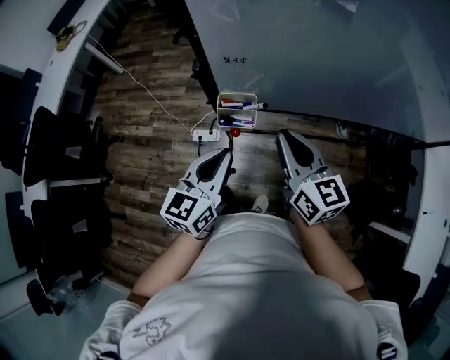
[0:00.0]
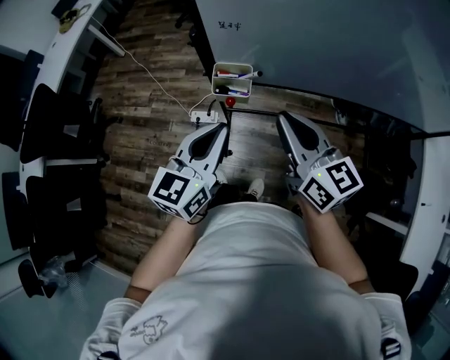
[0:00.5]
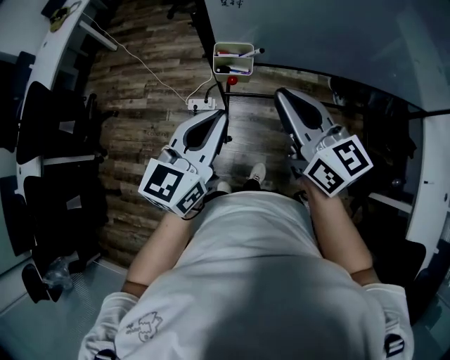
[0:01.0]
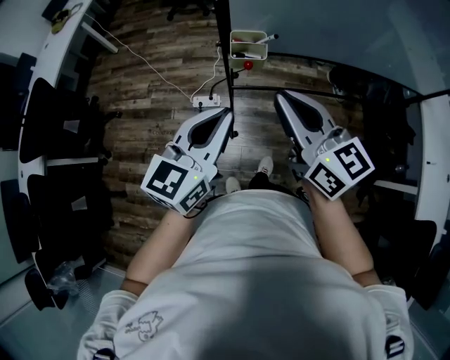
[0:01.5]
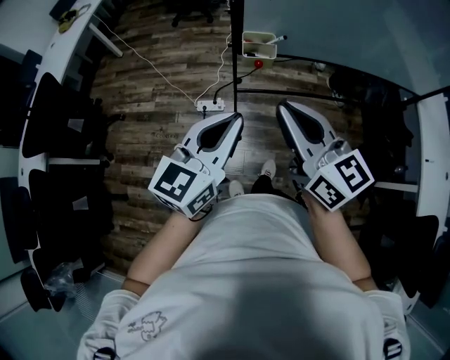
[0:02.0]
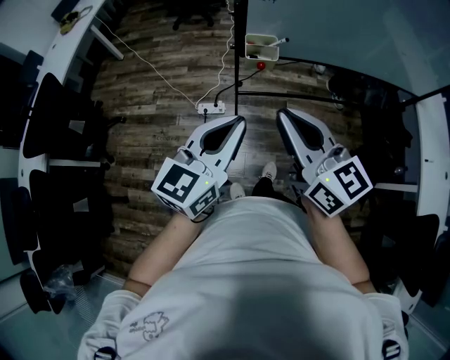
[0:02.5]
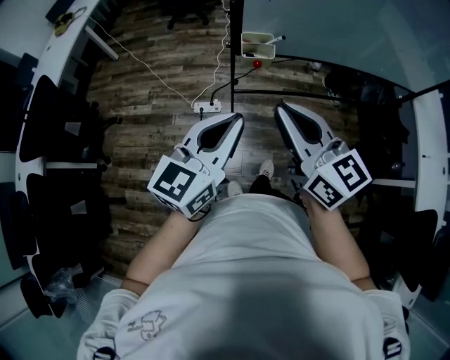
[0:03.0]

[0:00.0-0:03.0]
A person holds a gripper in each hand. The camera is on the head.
0:00.0 to 0:01.5: The right gripper is displaced backward, to the left and upward by roughly 20 cm; the left gripper goes approximately 15 cm backward and upward.
0:01.5 to 0:03.0: The left gripper heads backward, covering some 5 cm. The right gripper is displaced backward and to the left by roughly 10 cm.

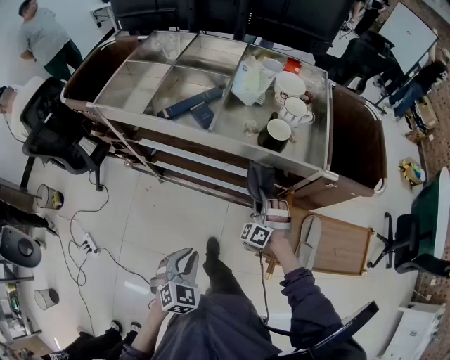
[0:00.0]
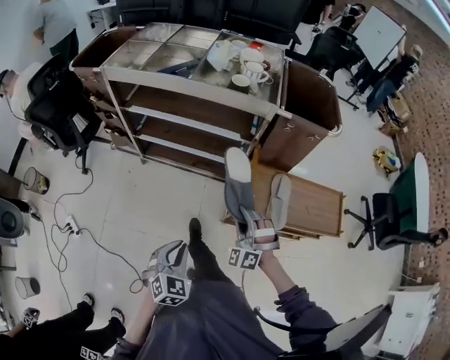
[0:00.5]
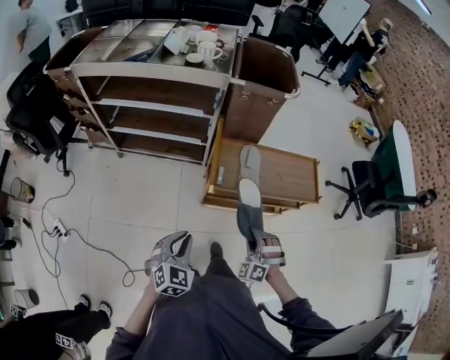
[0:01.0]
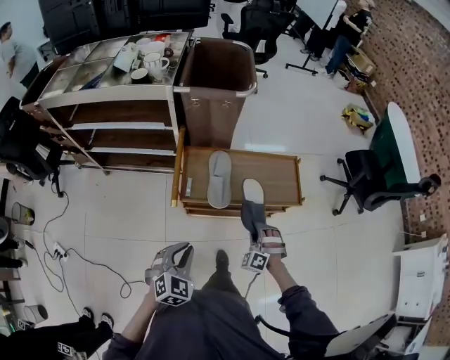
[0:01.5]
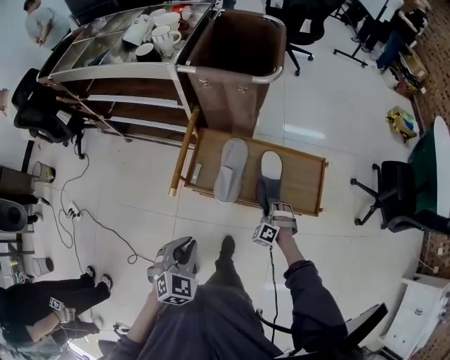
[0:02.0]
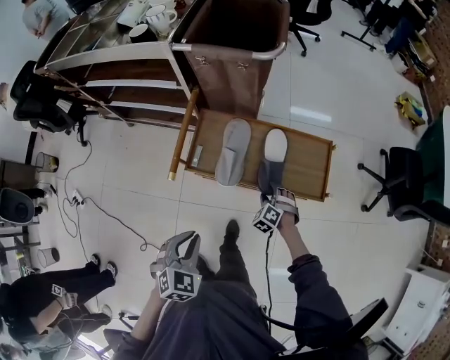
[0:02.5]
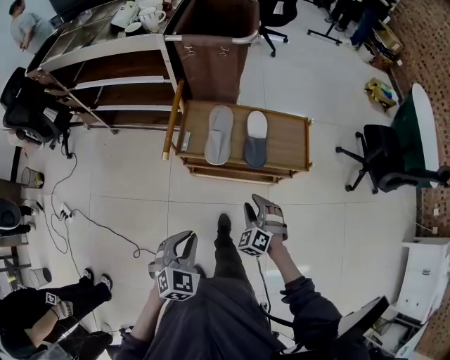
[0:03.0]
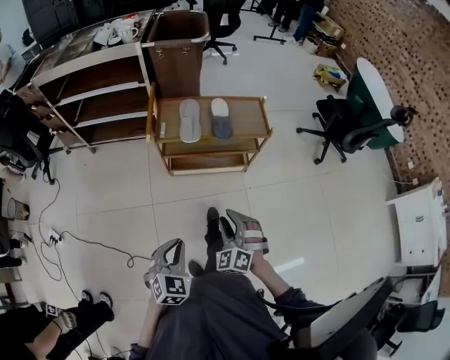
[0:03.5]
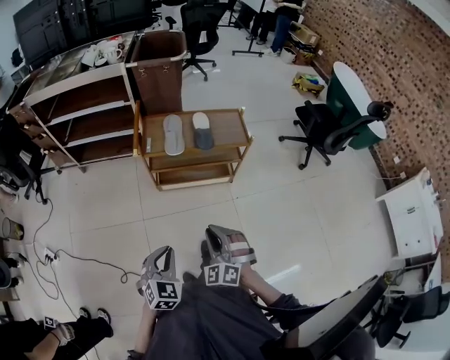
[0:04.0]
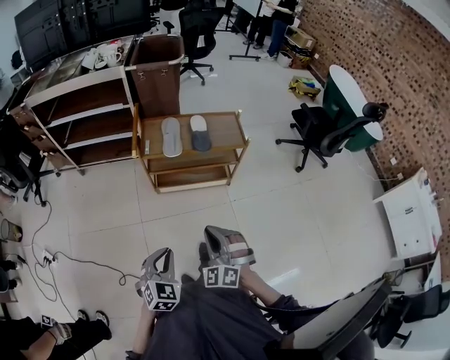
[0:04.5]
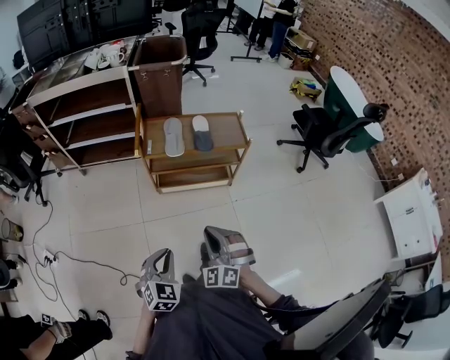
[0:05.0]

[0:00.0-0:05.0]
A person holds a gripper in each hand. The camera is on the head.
0:00.0 to 0:02.5: The two grippers travel together, to the right and backward, about 60 cm. The right gripper tilts its fingers about 30 degrees downward, and opens its fingers.
0:02.5 to 0:05.0: The right gripper heads backward and upward, covering roughly 60 cm, angles its fingers upward, by approximately 30 degrees, and closes up; the left gripper goes approximately 35 cm backward.

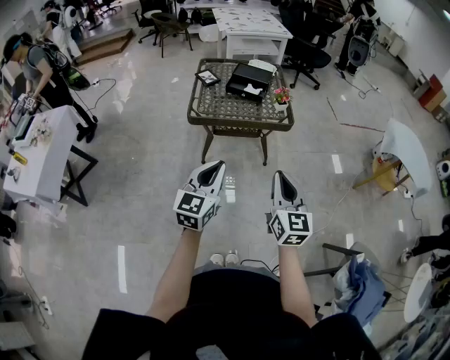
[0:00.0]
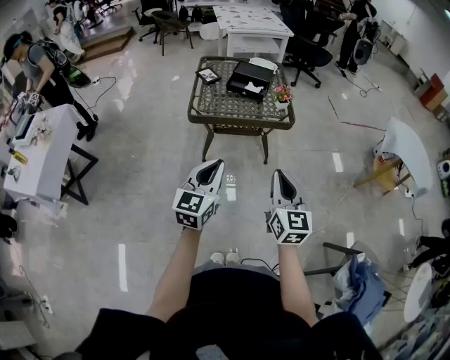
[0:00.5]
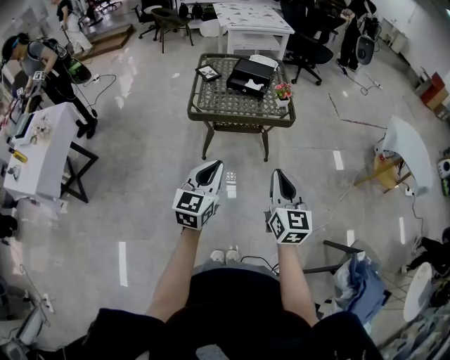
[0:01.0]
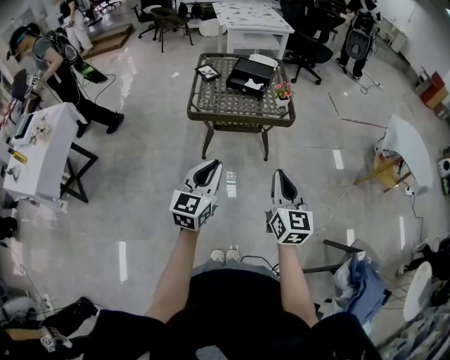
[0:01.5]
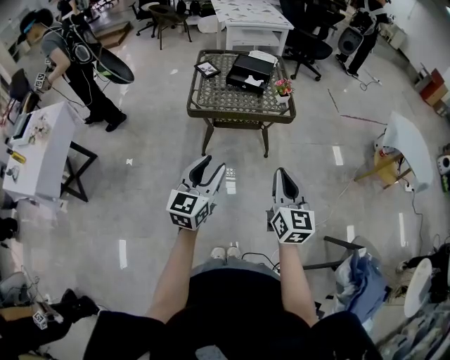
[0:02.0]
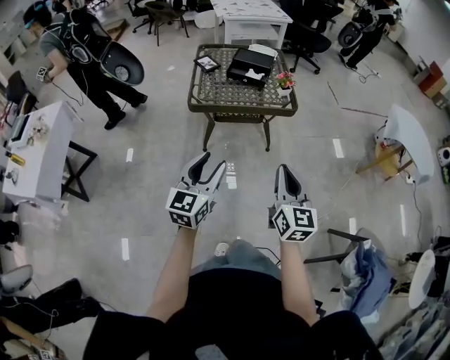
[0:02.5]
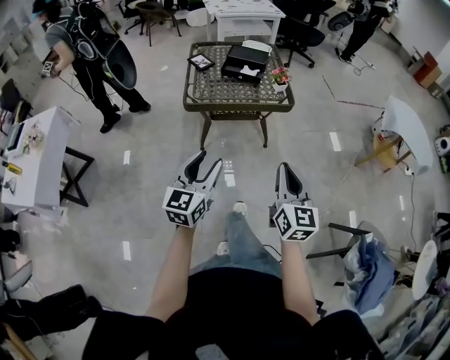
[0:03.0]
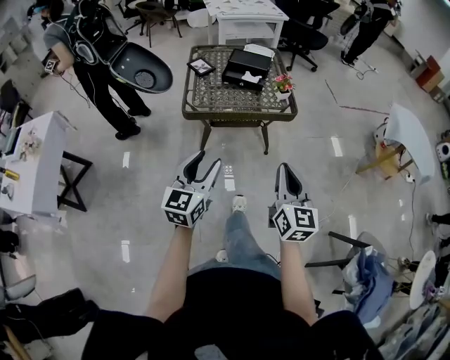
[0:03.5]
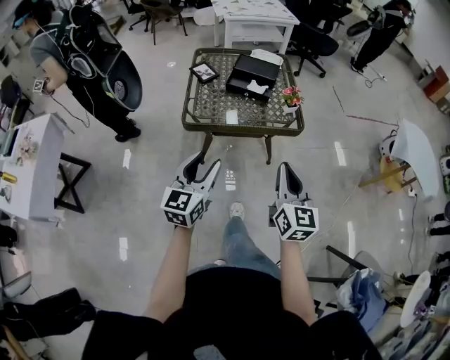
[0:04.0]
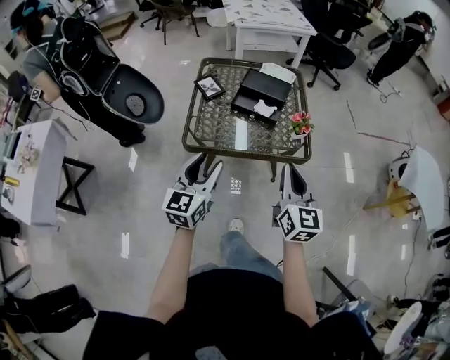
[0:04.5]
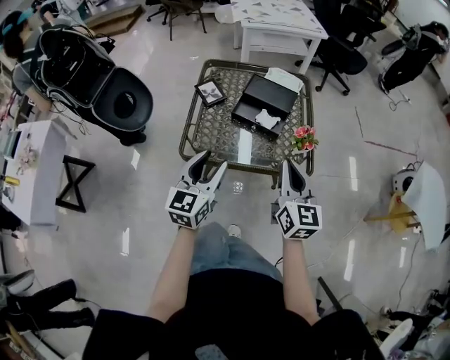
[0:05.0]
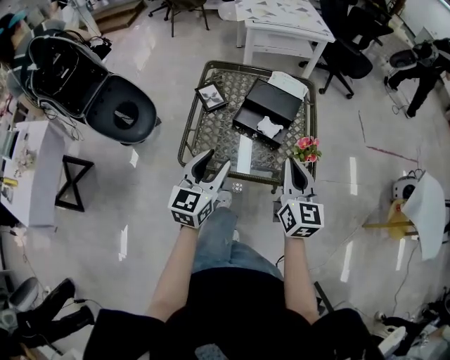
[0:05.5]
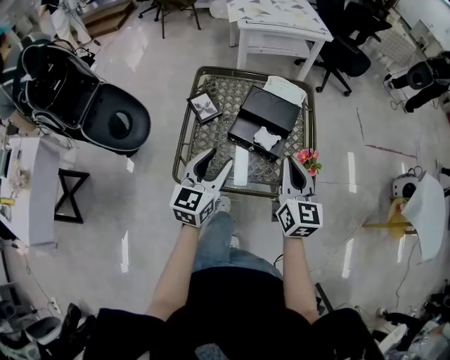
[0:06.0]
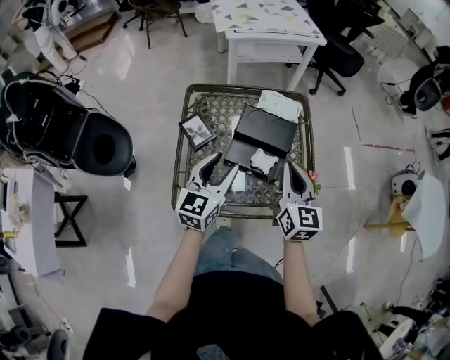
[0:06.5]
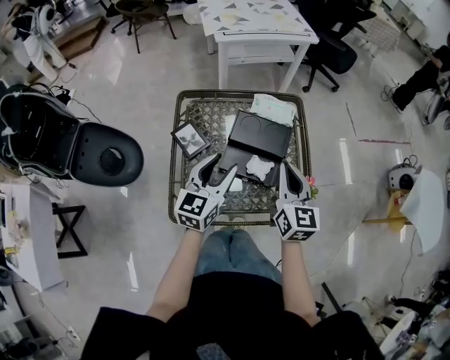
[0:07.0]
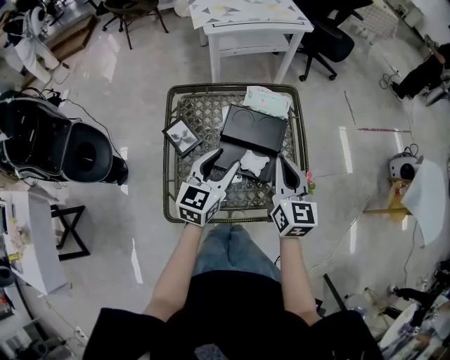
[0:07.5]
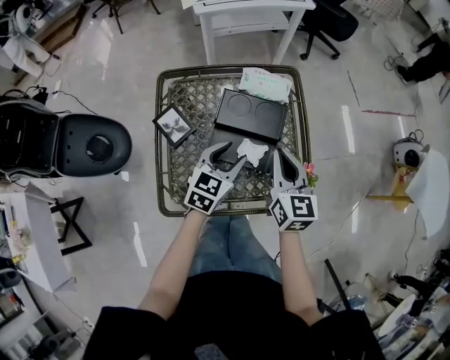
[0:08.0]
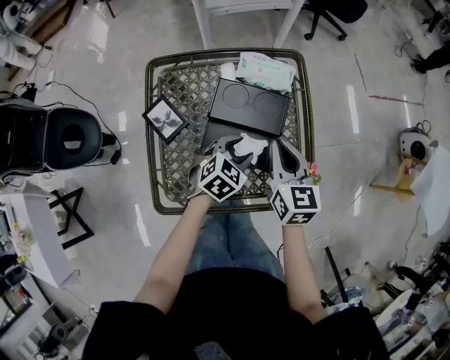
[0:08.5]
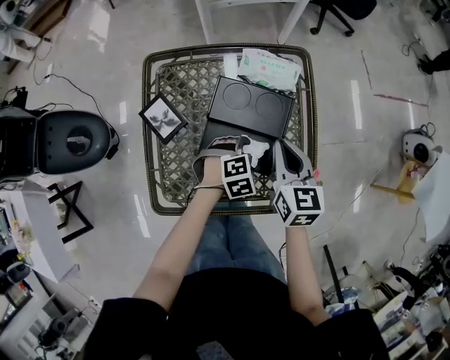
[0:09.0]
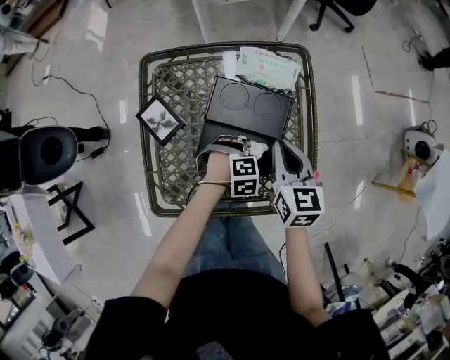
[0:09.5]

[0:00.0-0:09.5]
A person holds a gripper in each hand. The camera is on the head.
0:00.0 to 0:02.0: The left gripper opens up.
0:02.0 to 0:04.0: Both grippers travel together forward, roughly 15 cm.
0:04.0 to 0:05.5: Both grippers move forward, roughly 30 cm.
0:05.5 to 0:07.5: The two grippers go about 25 cm forward.
0:07.5 to 0:09.5: The left gripper moves downward, approximately 25 cm, and points its fingers roughly 60 degrees further downward; the right gripper is displaced downward by some 10 cm.

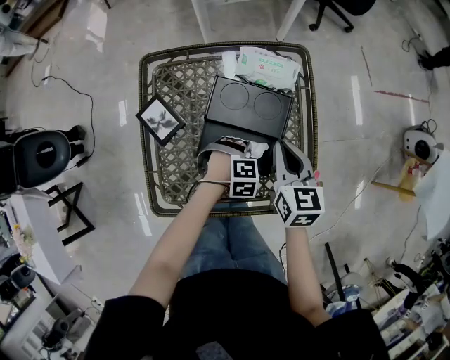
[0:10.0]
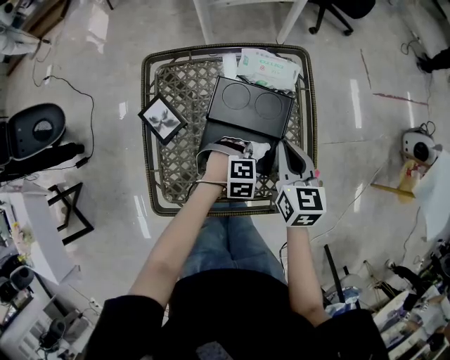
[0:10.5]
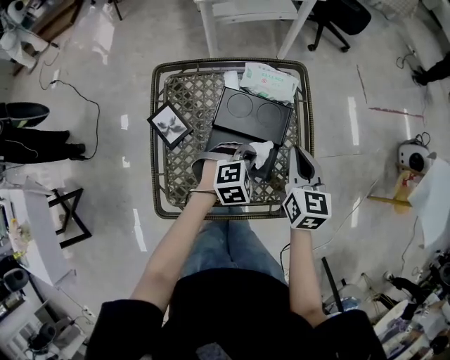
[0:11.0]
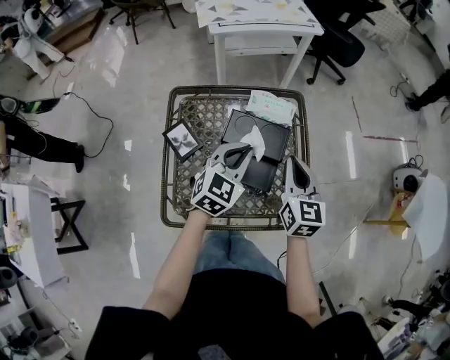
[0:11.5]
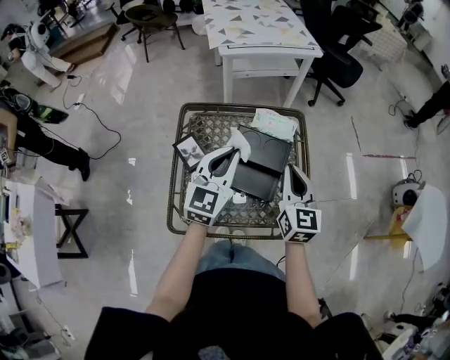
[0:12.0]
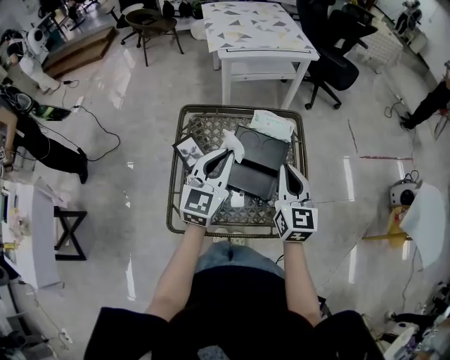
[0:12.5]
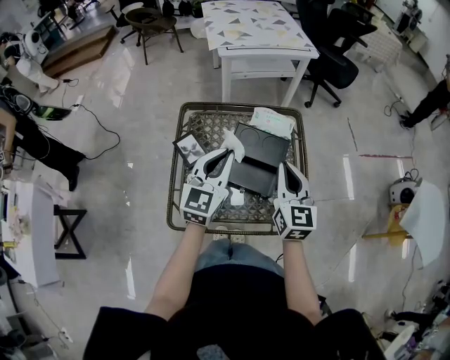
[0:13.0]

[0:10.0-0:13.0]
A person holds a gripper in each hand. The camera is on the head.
0:10.0 to 0:11.5: The left gripper heads upward, covering approximately 25 cm, and points its fingers roughly 50 degrees further upward; the right gripper goes roughly 10 cm upward.
0:11.5 to 0:13.0: The right gripper heads upward, covering some 5 cm, while the left gripper goes roughly 10 cm upward, to the left and backward, and changes its angle by approximately 20 degrees.

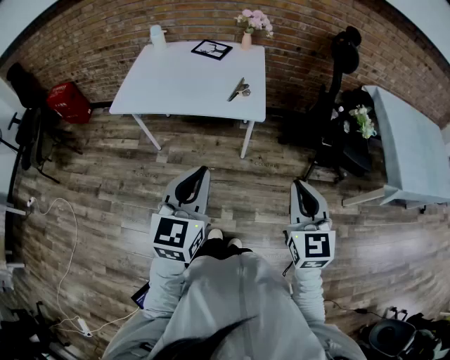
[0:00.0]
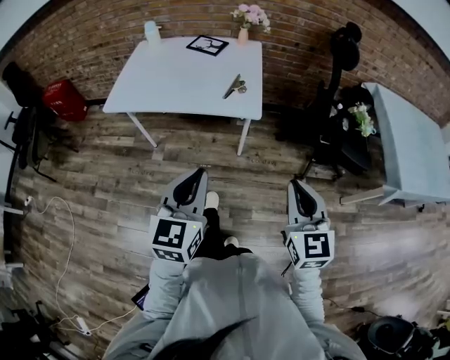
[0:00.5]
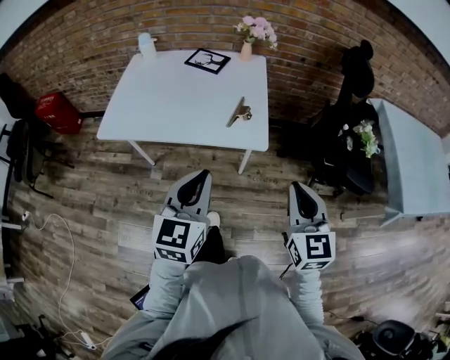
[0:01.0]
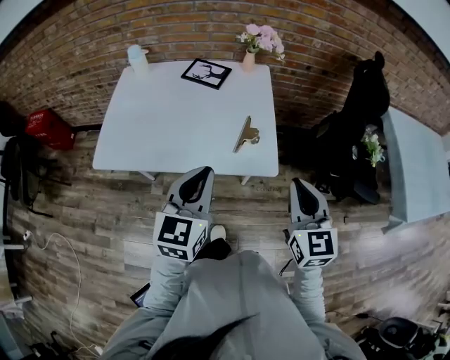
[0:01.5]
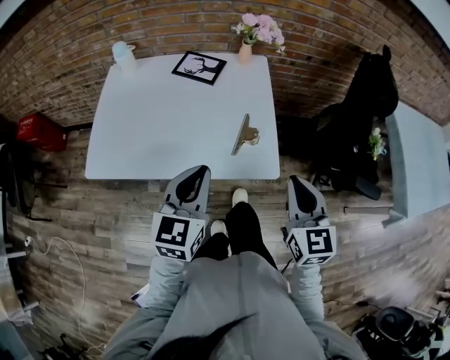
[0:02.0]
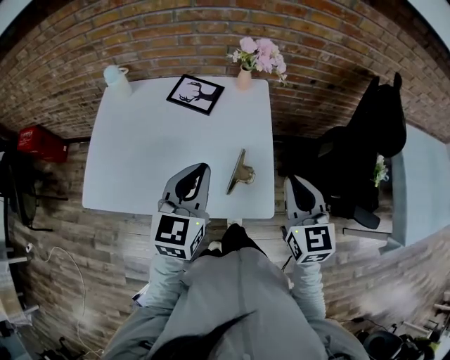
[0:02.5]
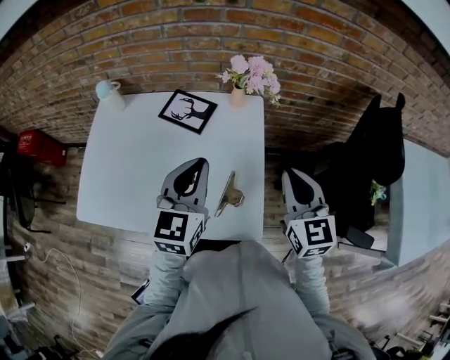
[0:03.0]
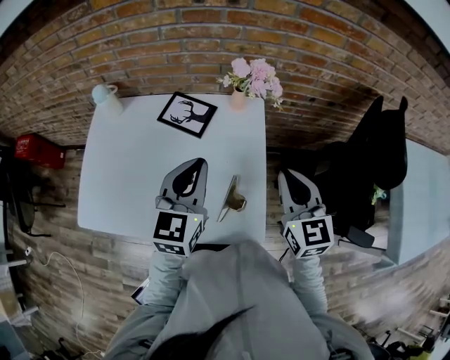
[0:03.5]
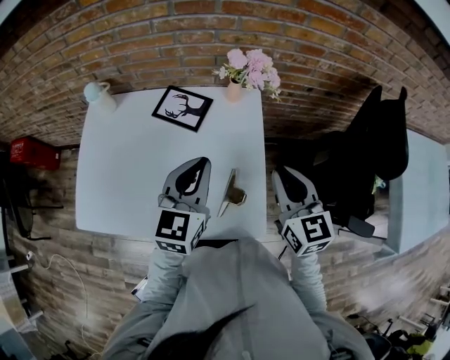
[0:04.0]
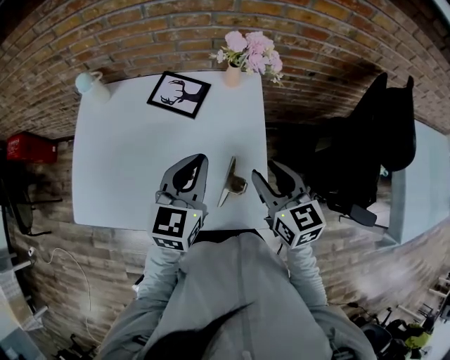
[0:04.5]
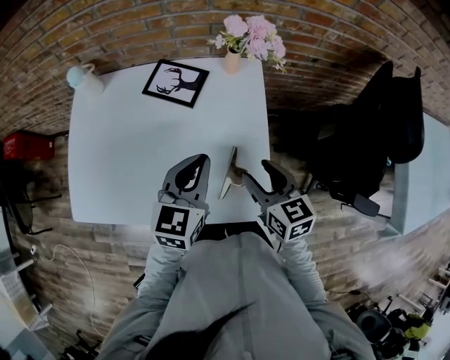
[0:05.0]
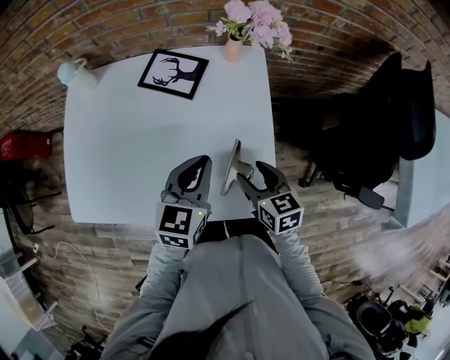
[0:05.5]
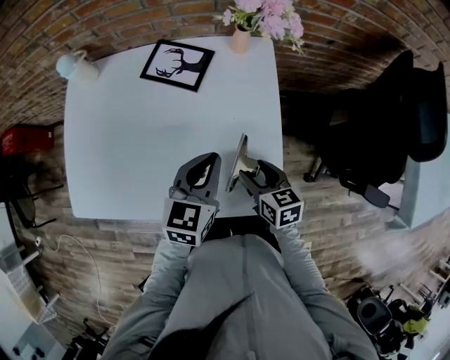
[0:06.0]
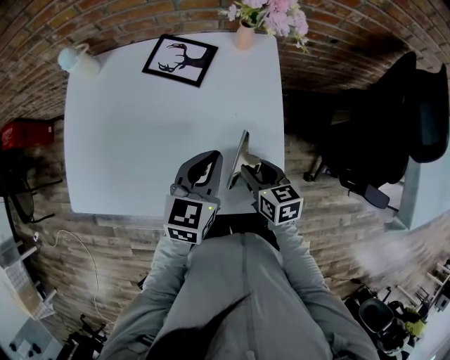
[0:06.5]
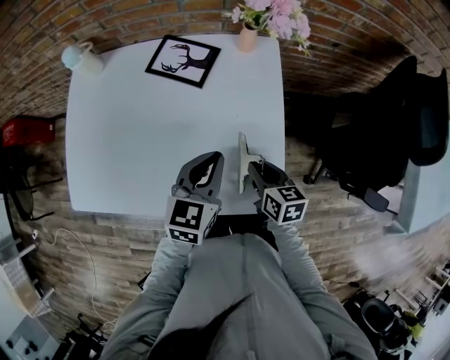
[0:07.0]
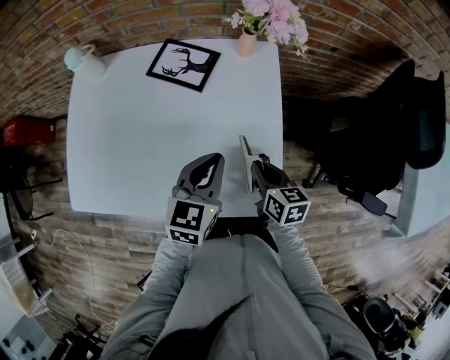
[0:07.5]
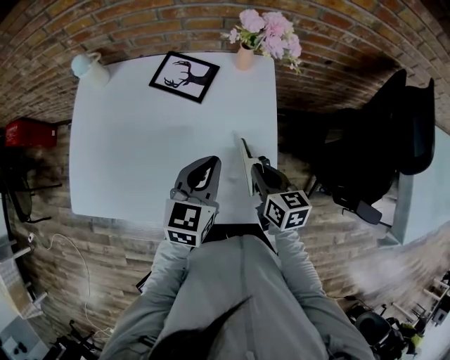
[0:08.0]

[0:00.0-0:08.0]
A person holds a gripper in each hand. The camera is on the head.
0:00.0 to 0:02.0: The grippers both shift forward by approximately 30 cm.
0:02.0 to 0:04.0: Both grippers move forward, roughly 25 cm.
0:04.0 to 0:06.0: The right gripper travels downward by some 25 cm, turns by some 30 degrees, and opens its fingers, while the left gripper goes approximately 15 cm downward.
0:06.0 to 0:08.0: The right gripper changes place by approximately 5 cm, and closes.
